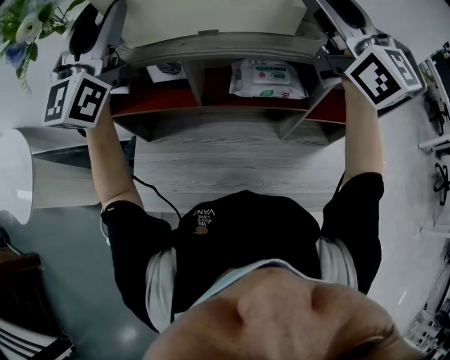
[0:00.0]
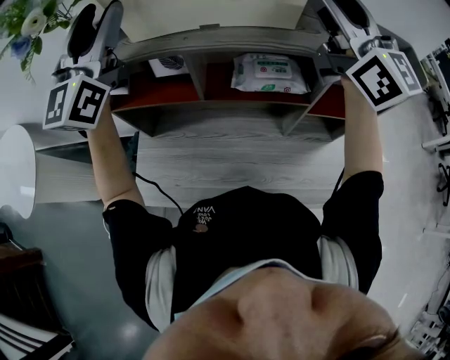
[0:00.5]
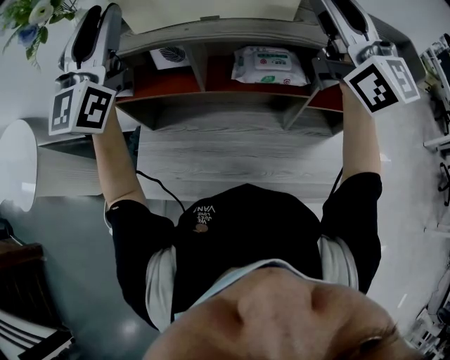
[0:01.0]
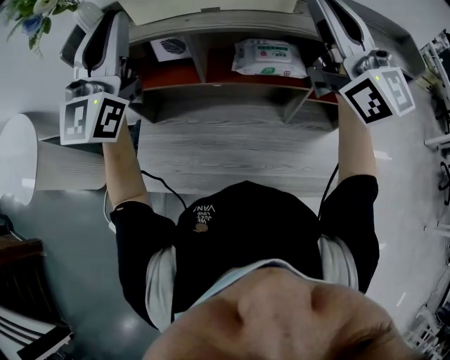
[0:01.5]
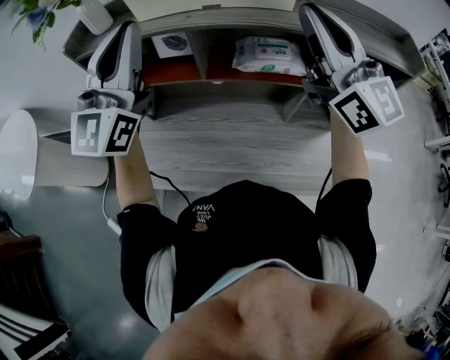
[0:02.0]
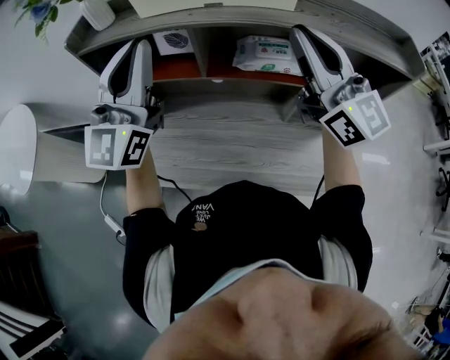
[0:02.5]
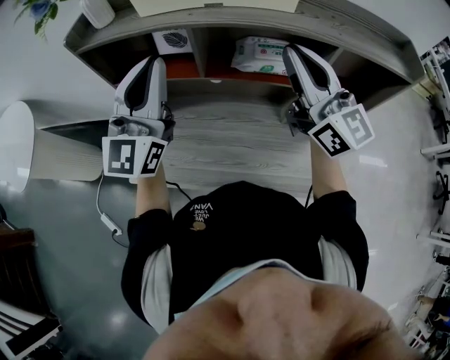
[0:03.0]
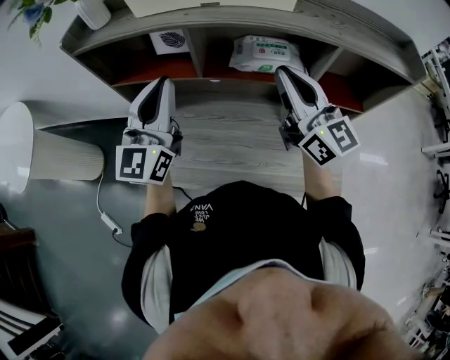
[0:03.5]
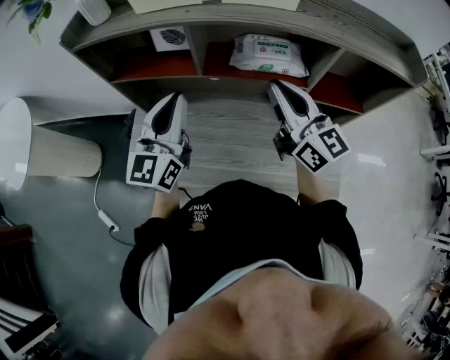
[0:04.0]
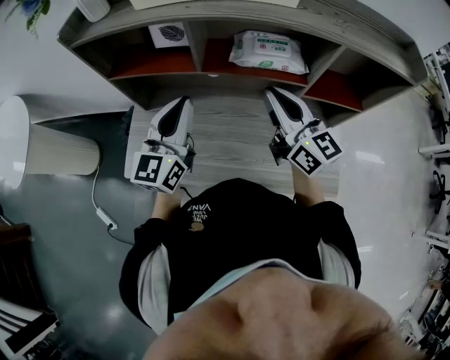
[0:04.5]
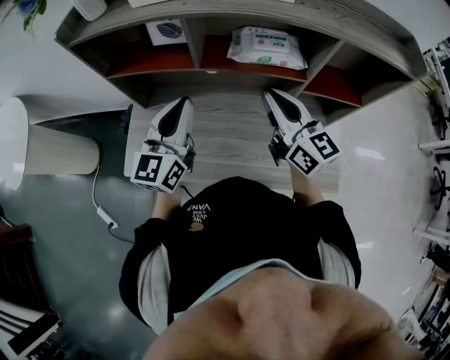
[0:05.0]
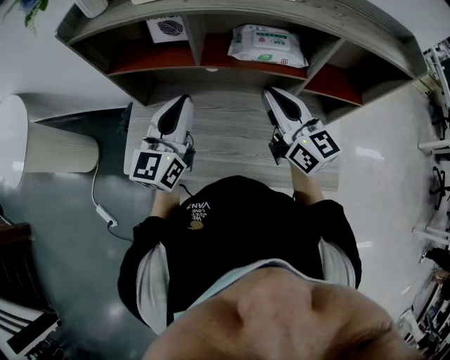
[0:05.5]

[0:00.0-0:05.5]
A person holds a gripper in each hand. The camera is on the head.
0:00.0 to 0:02.0: The left gripper goes some 10 cm backward, and closes; the right gripper is displaced backward and downward by approximately 10 cm, and closes.
0:02.0 to 0:03.5: Both grippers travel together downward, some 15 cm.
0:03.5 to 0:05.5: The two grippers go roughly 10 cm downward.

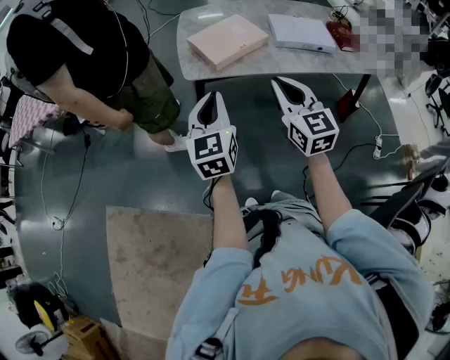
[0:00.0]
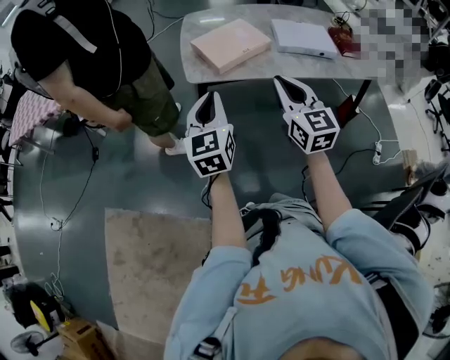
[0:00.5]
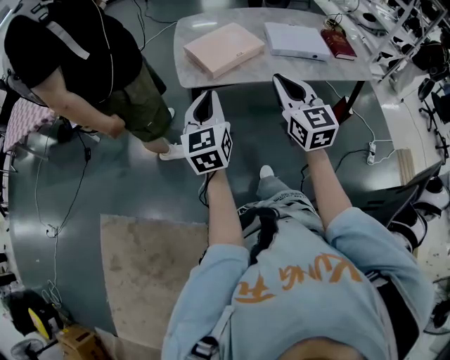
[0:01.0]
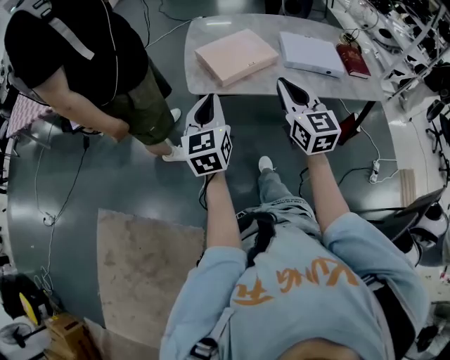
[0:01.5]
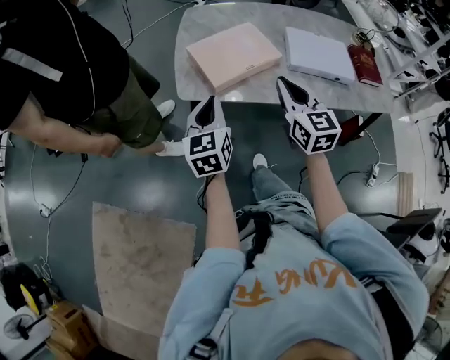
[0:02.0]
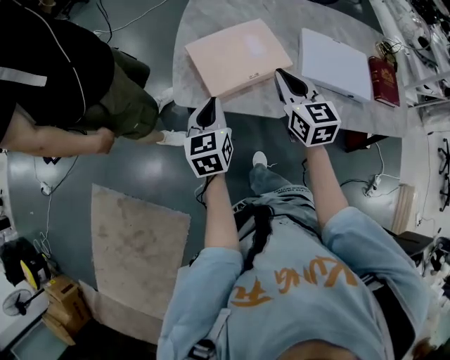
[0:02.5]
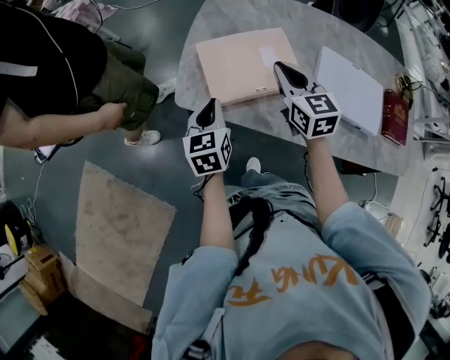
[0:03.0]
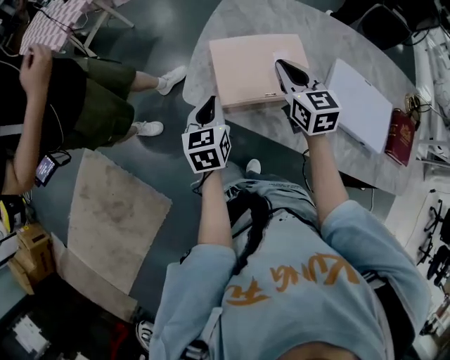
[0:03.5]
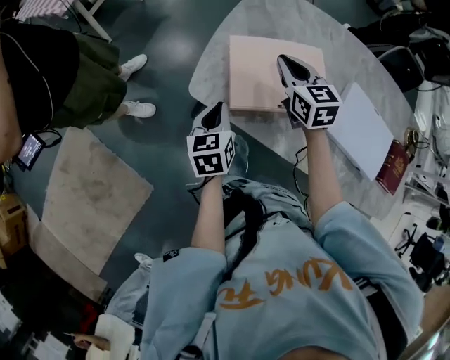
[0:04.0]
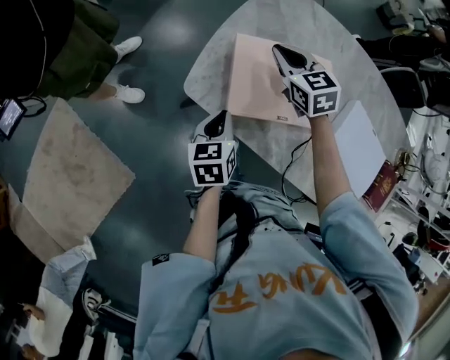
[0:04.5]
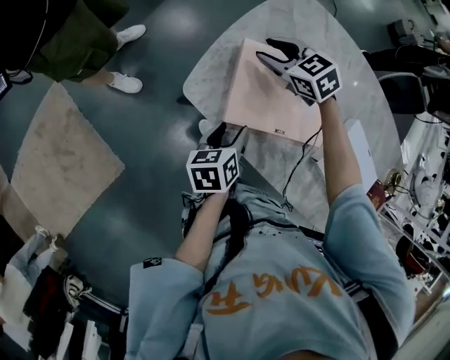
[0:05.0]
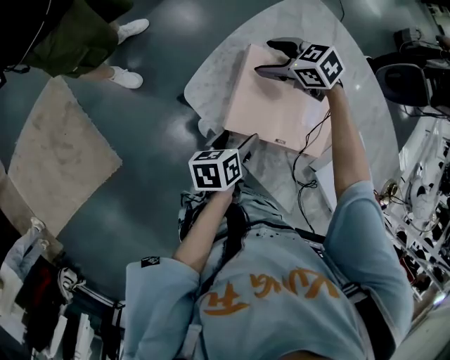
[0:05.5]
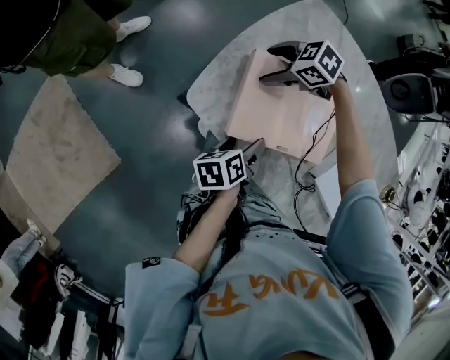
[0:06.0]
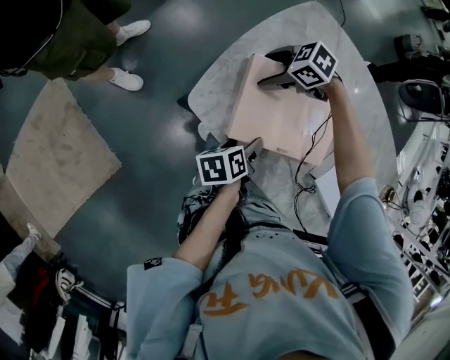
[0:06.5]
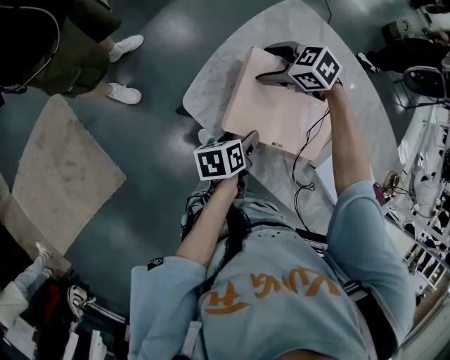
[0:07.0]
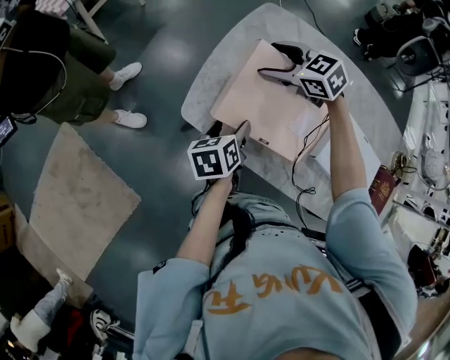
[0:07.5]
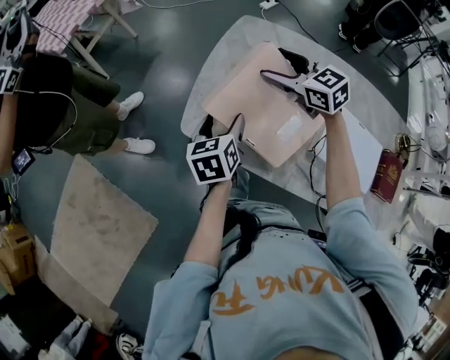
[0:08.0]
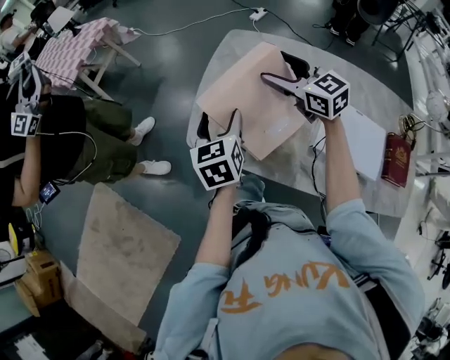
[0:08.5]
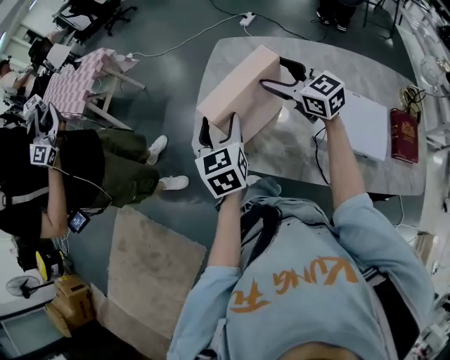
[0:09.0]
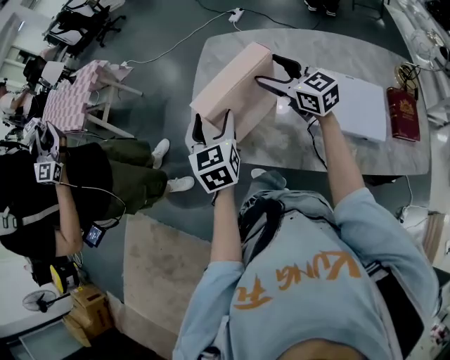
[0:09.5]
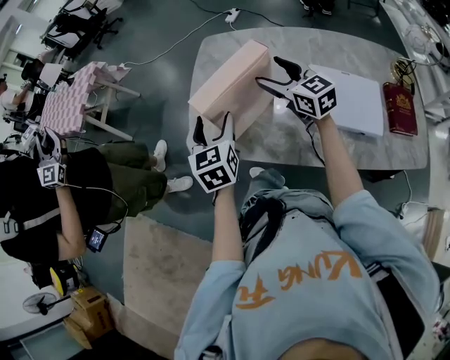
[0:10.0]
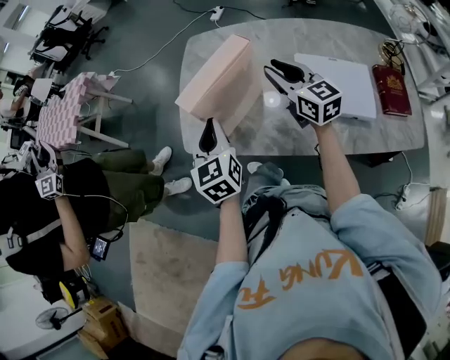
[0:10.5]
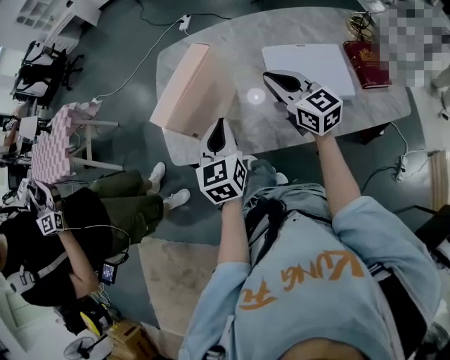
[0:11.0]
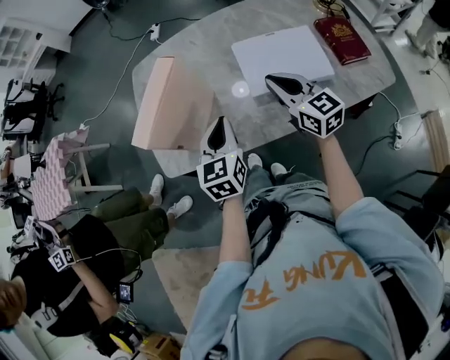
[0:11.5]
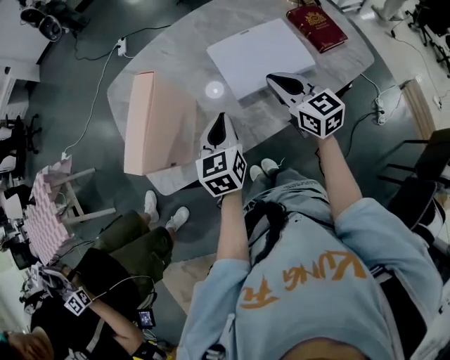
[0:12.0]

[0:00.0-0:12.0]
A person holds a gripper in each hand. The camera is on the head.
0:00.0 to 0:02.0: The left gripper moves forward and downward, about 20 cm. Meanwhile the right gripper heads forward, covering roughly 20 cm.
0:02.0 to 0:04.0: The right gripper is displaced forward by roughly 30 cm, and changes its angle by roughly 30 degrees. Meanwhile the left gripper shifts some 15 cm downward and forward, and turns by some 30 degrees.
0:04.0 to 0:06.0: The right gripper heads downward, covering approximately 15 cm, turns by approximately 80 degrees, and opens its fingers, while the left gripper moves some 10 cm, twists approximately 40 degrees counterclockwise, seen from behind, and opens up.
0:06.0 to 0:08.0: Both grippers move upward, roughly 20 cm. The right gripper points its fingers approximately 30 degrees further upward, while the left gripper swivels about 40 degrees.
0:08.0 to 0:10.0: The left gripper goes some 10 cm upward, and swivels about 30 degrees, while the right gripper moves backward and to the right, about 15 cm, and rotates some 30 degrees.
0:10.0 to 0:12.0: The left gripper ends up approximately 20 cm from where it was, turns by roughly 40 degrees, and closes up. Meanwhile the right gripper ends up roughly 25 cm from where it was, swivels roughly 40 degrees, and closes its fingers.

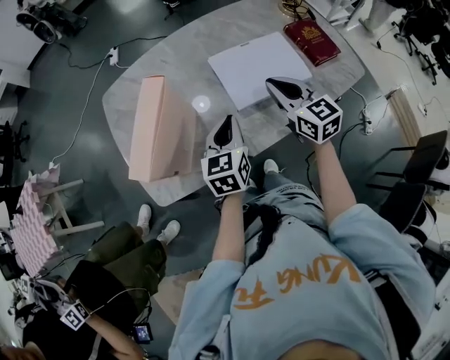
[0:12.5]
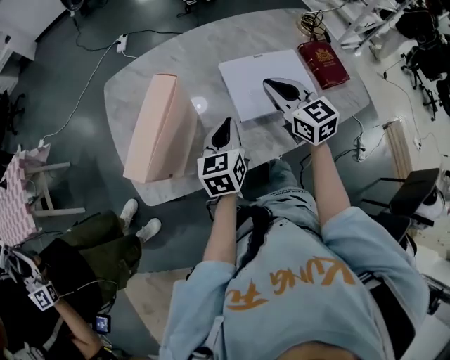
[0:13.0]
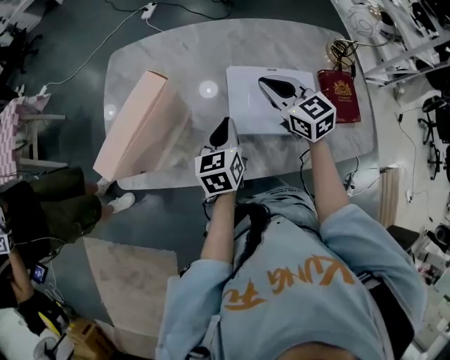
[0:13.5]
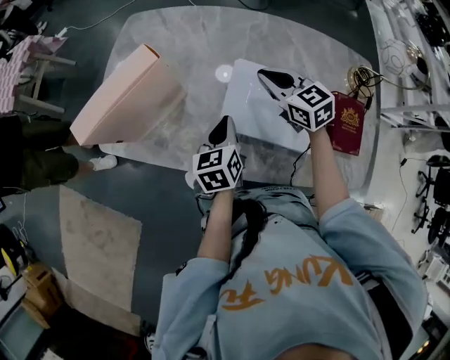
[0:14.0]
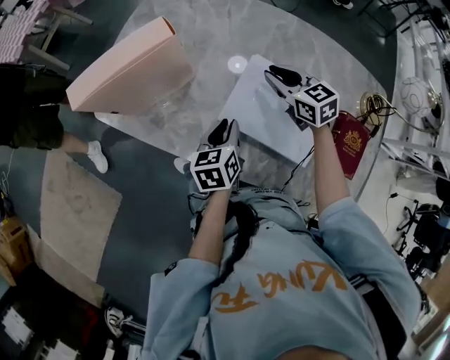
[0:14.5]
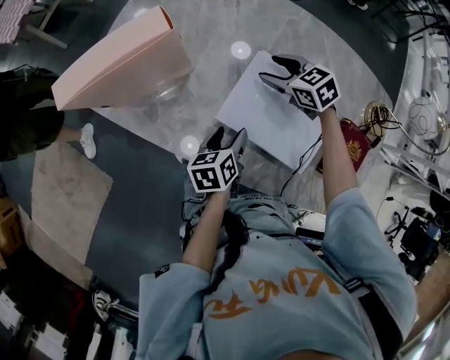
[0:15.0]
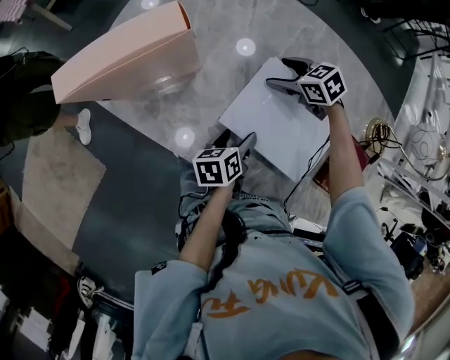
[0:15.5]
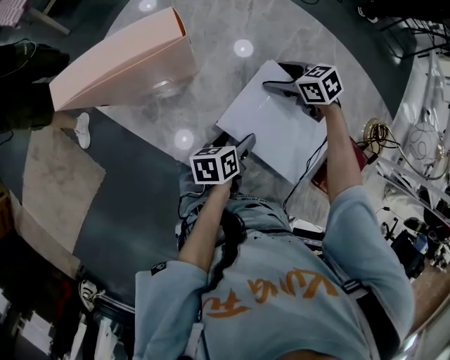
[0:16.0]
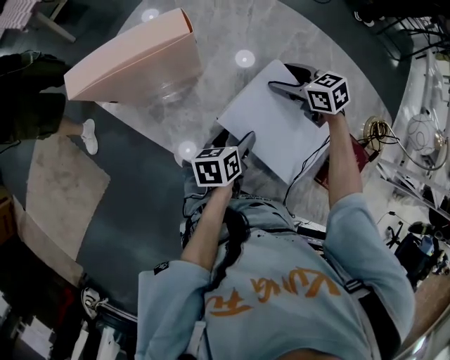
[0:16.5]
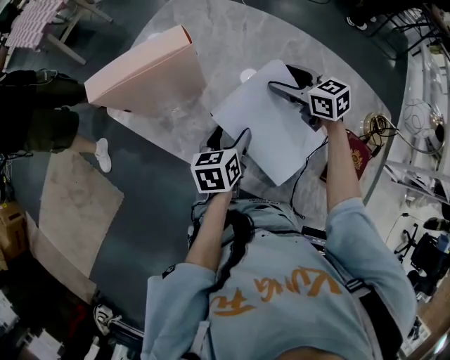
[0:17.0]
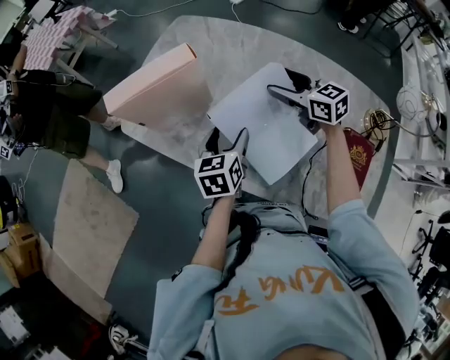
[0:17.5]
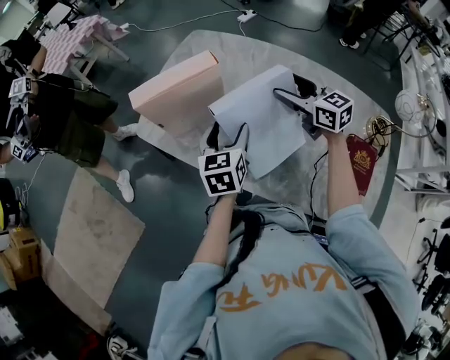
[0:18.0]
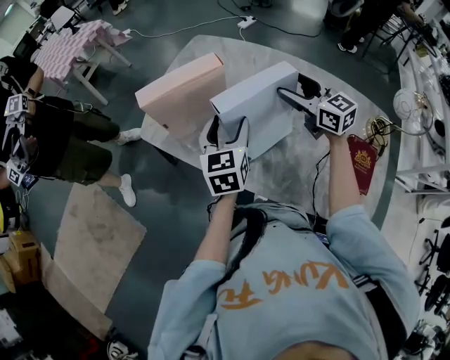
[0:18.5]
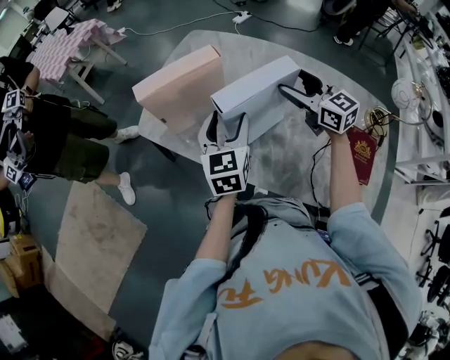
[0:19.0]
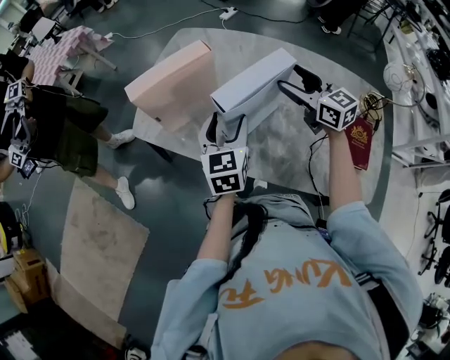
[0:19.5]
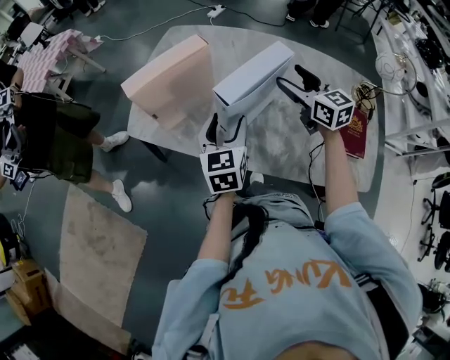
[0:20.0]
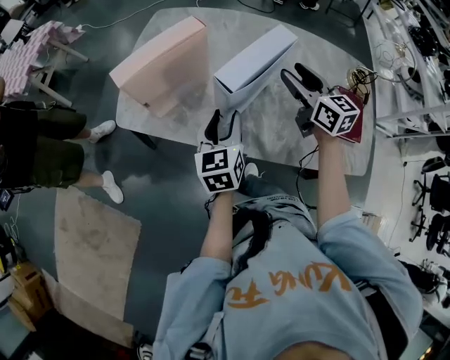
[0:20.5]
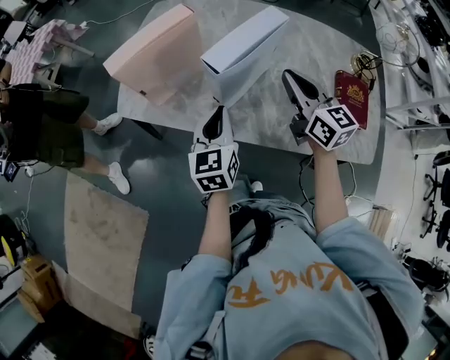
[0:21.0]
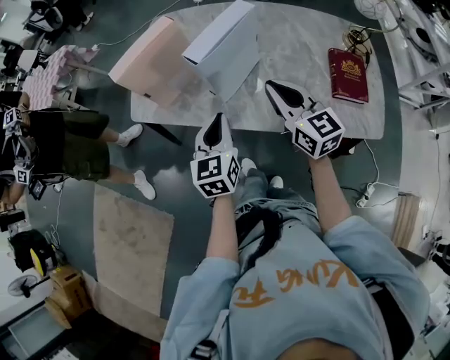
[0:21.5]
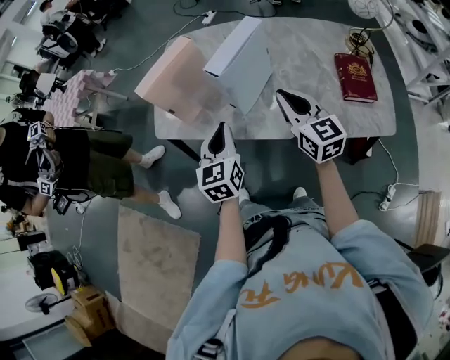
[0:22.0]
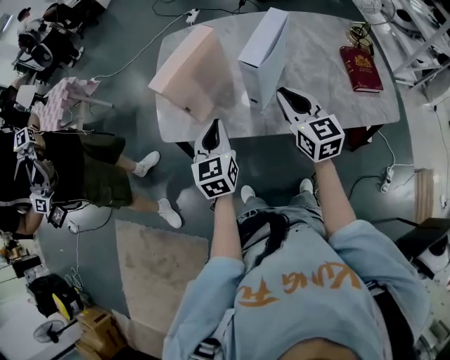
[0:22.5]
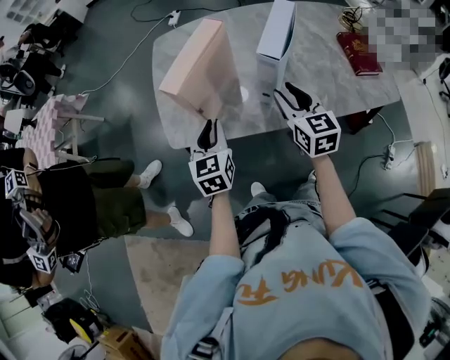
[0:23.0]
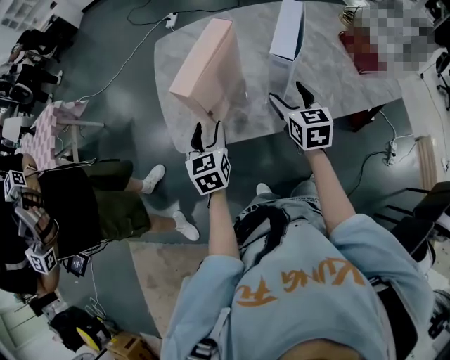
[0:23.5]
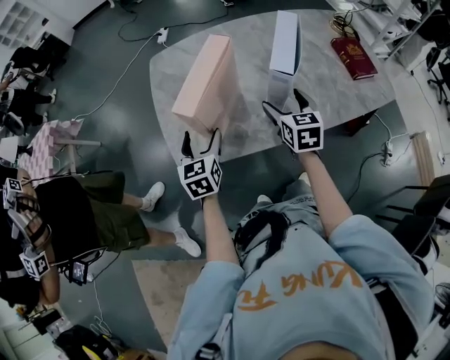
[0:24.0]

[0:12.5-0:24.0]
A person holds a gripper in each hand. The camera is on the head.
0:12.5 to 0:14.5: The left gripper moves downward, about 10 cm, and rotates roughly 50 degrees; the right gripper shifts by approximately 20 cm, and rotates about 60 degrees.
0:14.5 to 0:16.5: The right gripper goes about 5 cm downward, rotates some 20 degrees, and opens up; the left gripper opens its fingers.
0:16.5 to 0:18.5: The left gripper moves upward and to the left, roughly 25 cm, and swivels some 50 degrees. The right gripper moves upward, approximately 20 cm, and angles its fingers upward, by approximately 30 degrees.
0:18.5 to 0:20.0: The two grippers go some 5 cm backward.
0:20.0 to 0:22.0: The left gripper goes some 10 cm backward, and closes up. Meanwhile the right gripper shifts approximately 20 cm backward, and closes its fingers.
0:22.0 to 0:24.0: The right gripper shifts by approximately 20 cm, swivels about 40 degrees, and opens. Meanwhile the left gripper moves some 30 cm, and opens.
